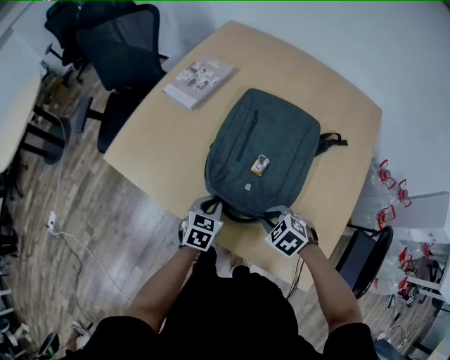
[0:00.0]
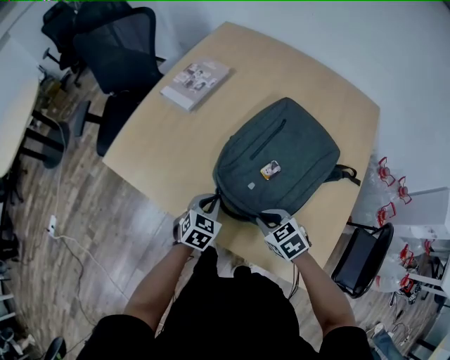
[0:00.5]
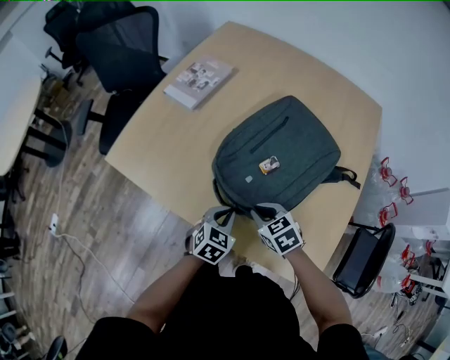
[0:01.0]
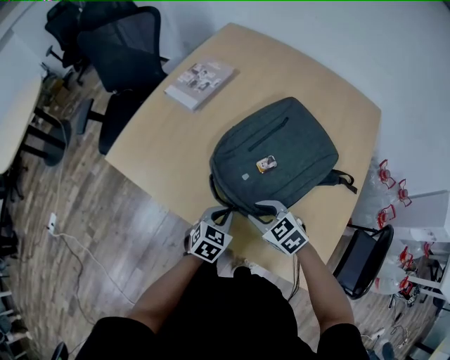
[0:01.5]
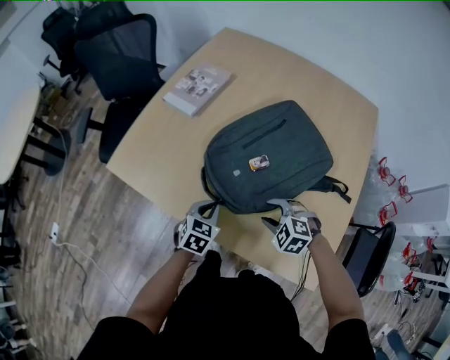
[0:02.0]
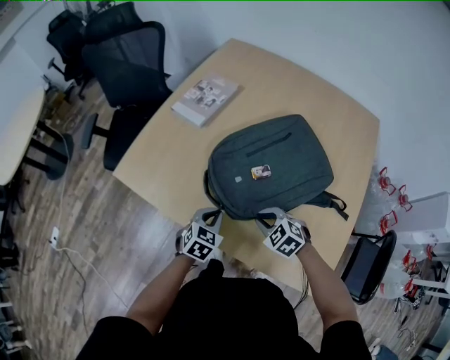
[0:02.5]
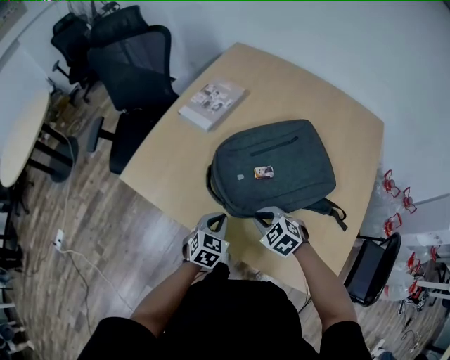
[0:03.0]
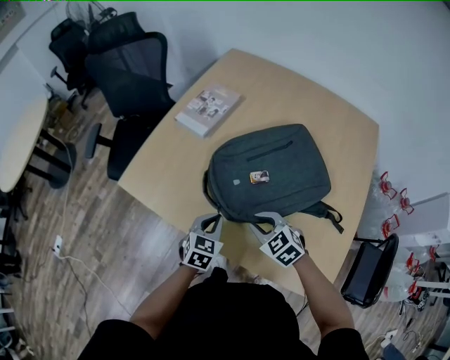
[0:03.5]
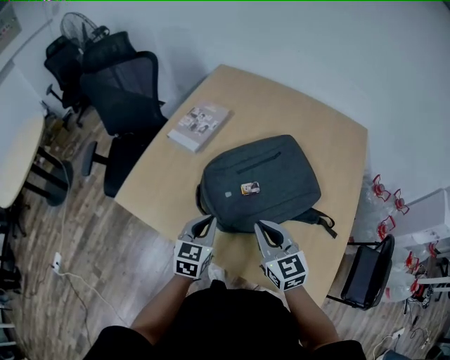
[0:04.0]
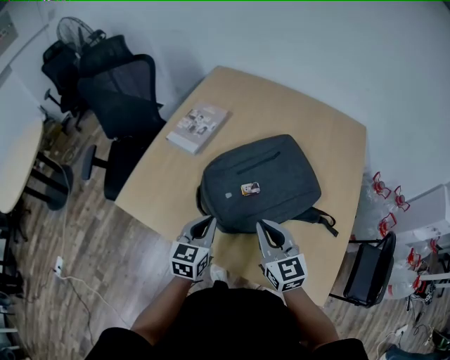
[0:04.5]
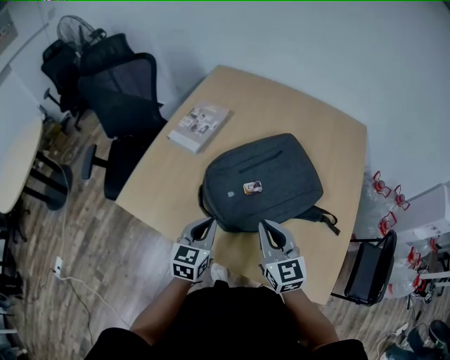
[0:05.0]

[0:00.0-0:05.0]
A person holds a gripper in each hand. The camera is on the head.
0:00.0 to 0:02.5: The right gripper is displaced to the left by approximately 5 cm, and opens, then closes once more.
0:02.5 to 0:05.0: The left gripper travels upward by approximately 10 cm, and changes its angle by some 30 degrees; the right gripper is displaced upward by roughly 15 cm, and tilts its fingers roughly 40 degrees upward.

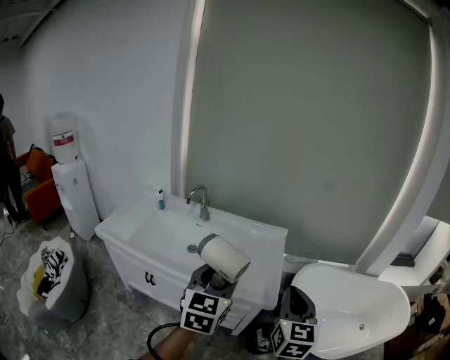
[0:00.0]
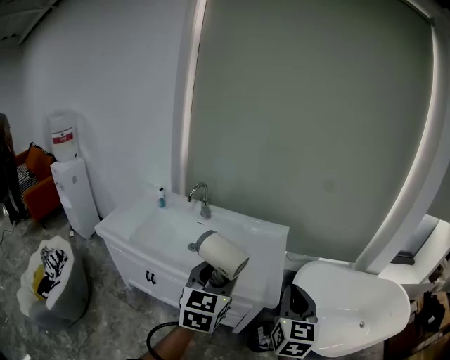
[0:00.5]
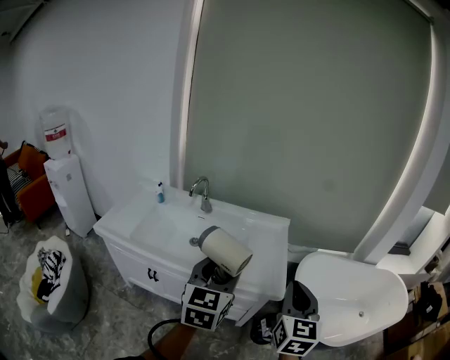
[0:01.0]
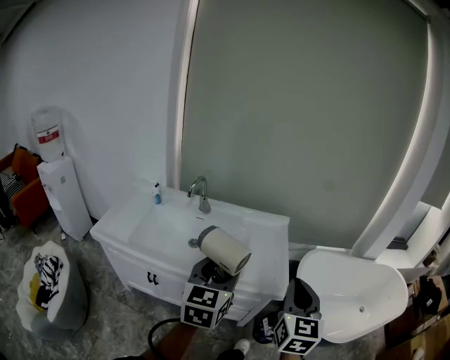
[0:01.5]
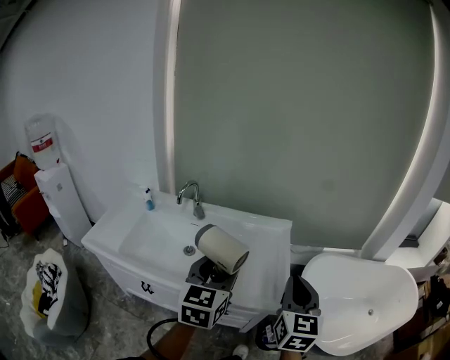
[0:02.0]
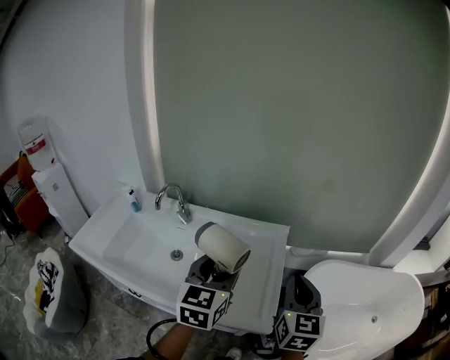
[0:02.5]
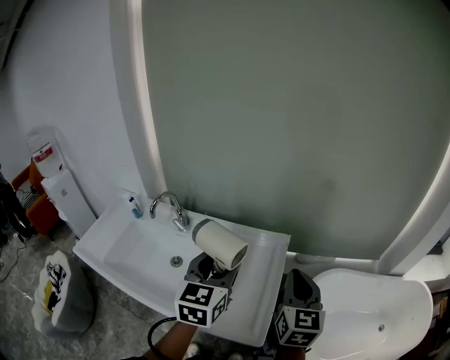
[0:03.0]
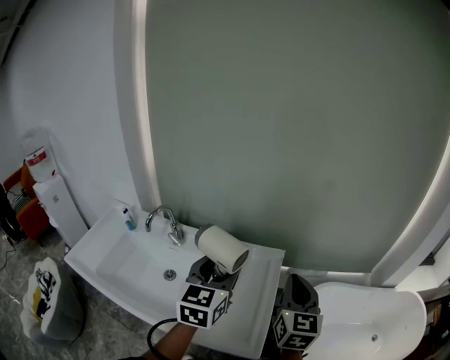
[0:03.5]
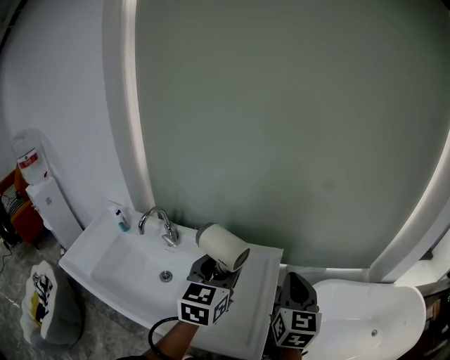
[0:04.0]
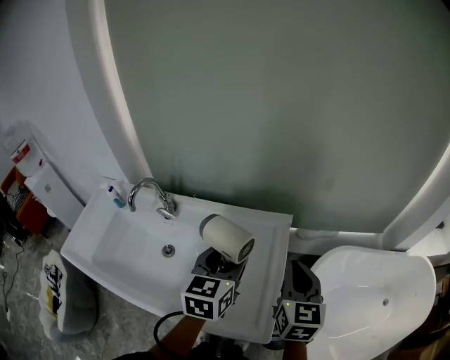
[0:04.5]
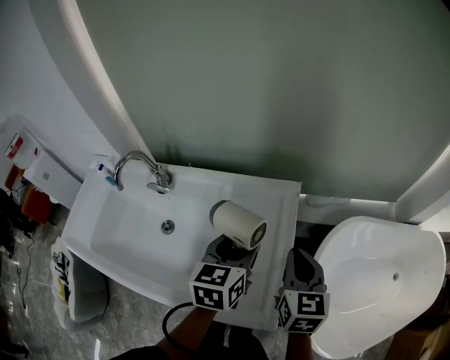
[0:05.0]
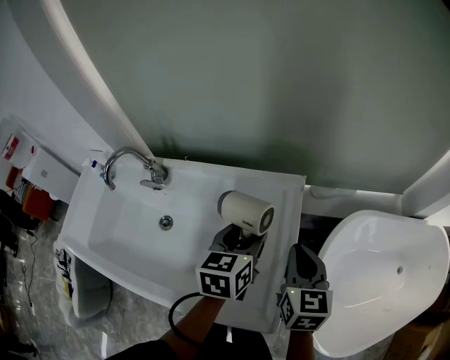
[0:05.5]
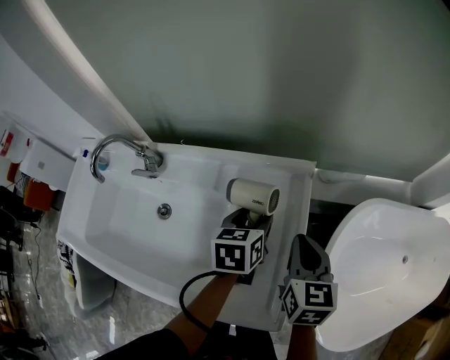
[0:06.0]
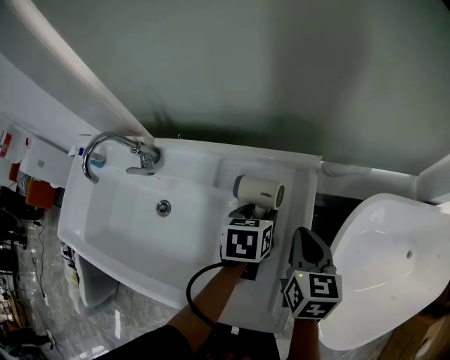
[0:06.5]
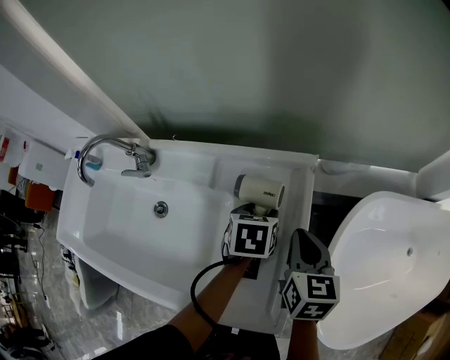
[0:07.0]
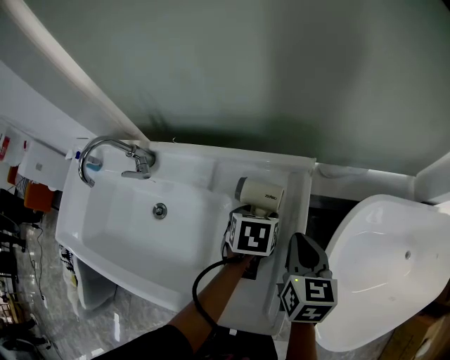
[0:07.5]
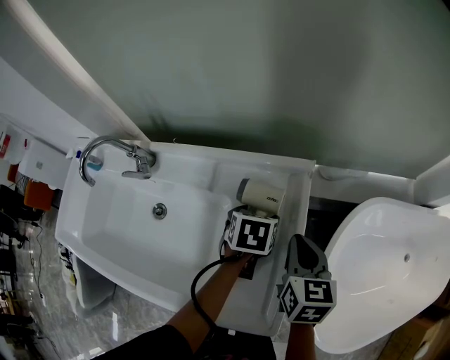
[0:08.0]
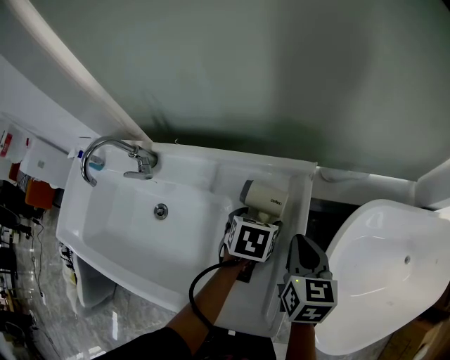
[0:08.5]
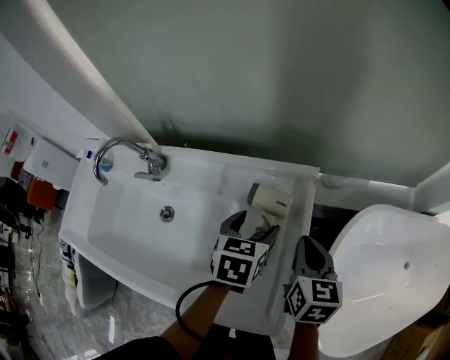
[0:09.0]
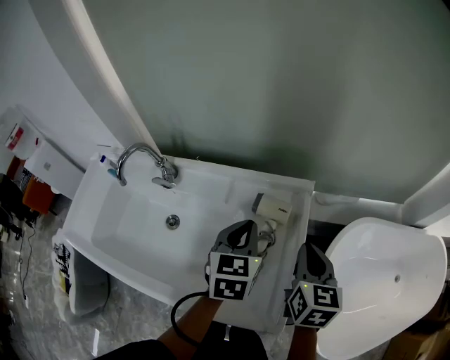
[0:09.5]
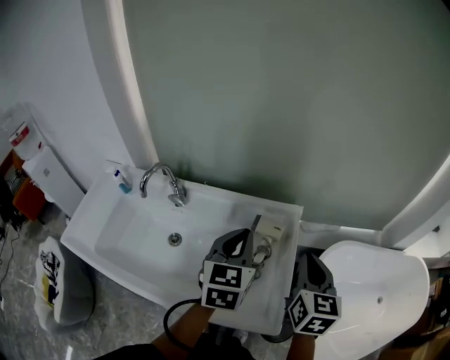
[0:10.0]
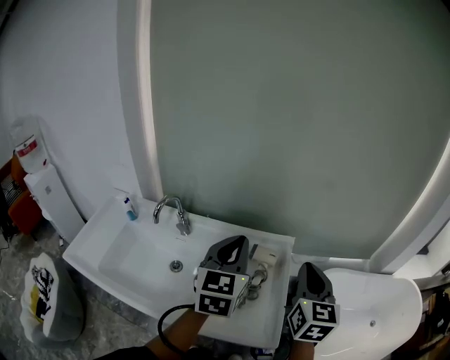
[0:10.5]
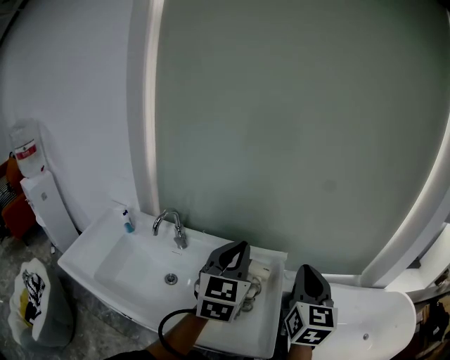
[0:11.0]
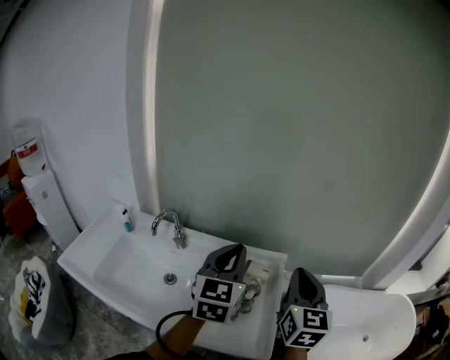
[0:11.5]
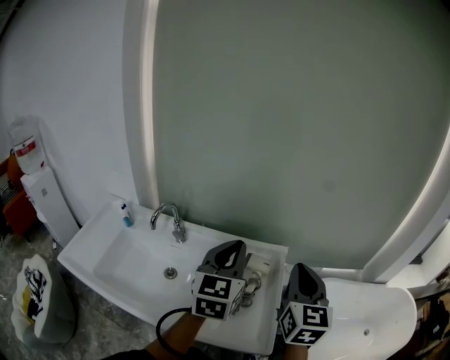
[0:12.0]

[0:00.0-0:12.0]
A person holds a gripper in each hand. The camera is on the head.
0:00.0 to 0:02.0: Both grippers travel together forward, roughly 10 cm.
0:02.0 to 0:04.0: Both grippers move forward, about 25 cm.
0:04.0 to 0:06.0: The grippers both shift downward by roughly 25 cm. The right gripper rotates about 20 degrees. The left gripper tips its fingers downward by roughly 30 degrees.
0:06.0 to 0:08.0: The left gripper moves downward, about 5 cm, and swivels some 20 degrees.
0:08.0 to 0:10.0: The right gripper goes some 20 cm upward and backward. The left gripper is displaced upward by roughly 25 cm, tips its fingers upward by about 40 degrees, and closes its fingers.
0:10.0 to 0:12.0: Both grippers travel together upward, roughly 10 cm.

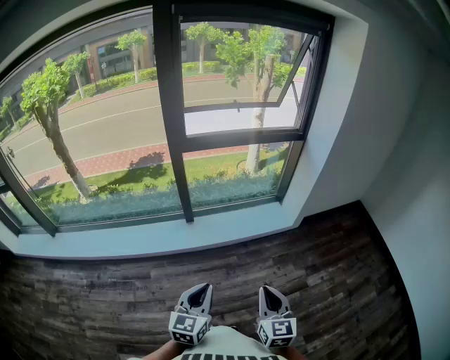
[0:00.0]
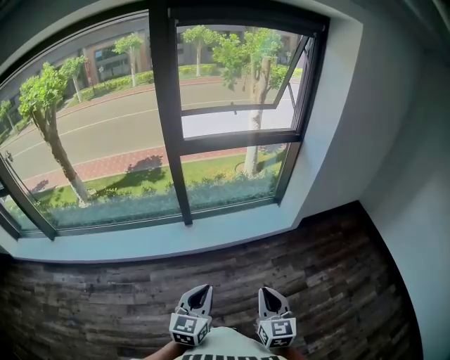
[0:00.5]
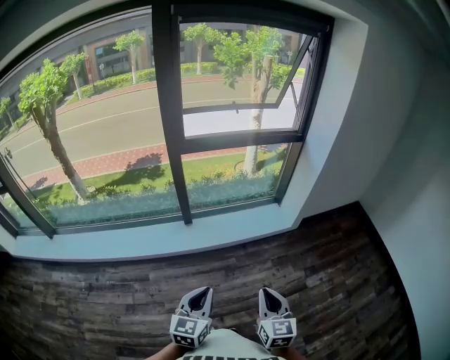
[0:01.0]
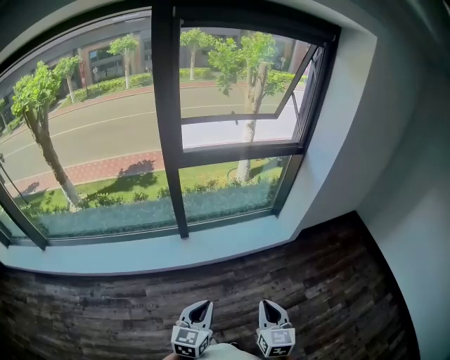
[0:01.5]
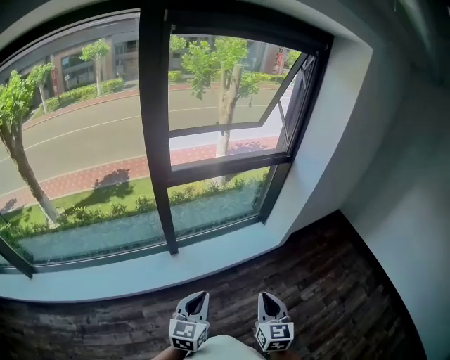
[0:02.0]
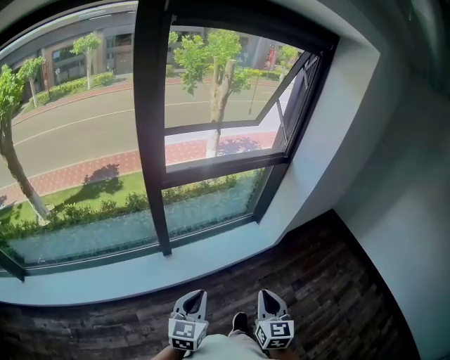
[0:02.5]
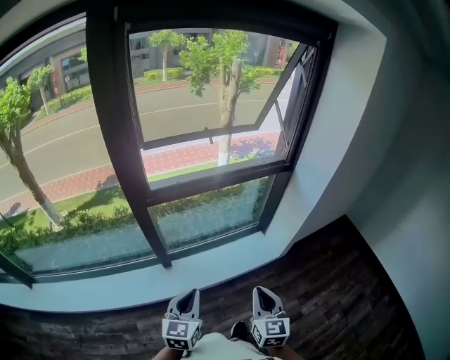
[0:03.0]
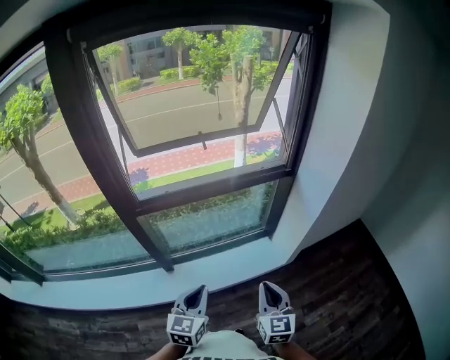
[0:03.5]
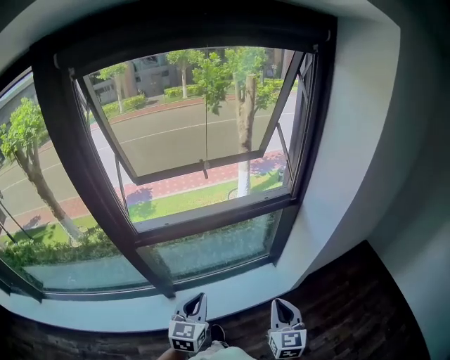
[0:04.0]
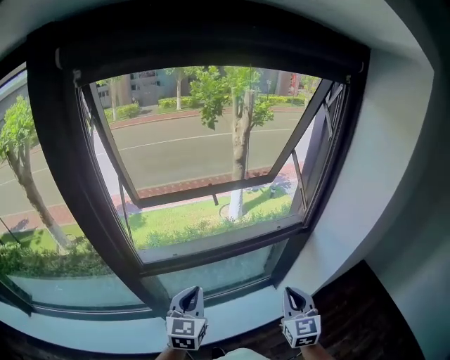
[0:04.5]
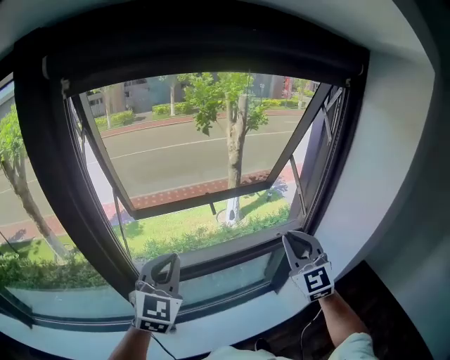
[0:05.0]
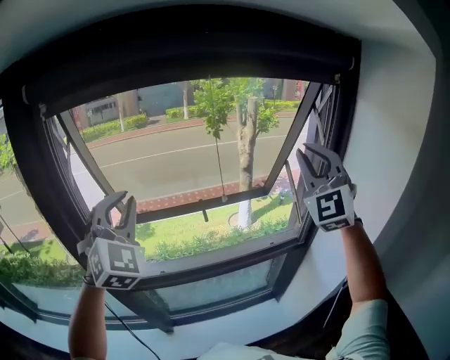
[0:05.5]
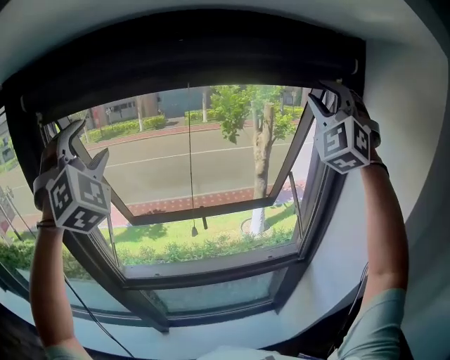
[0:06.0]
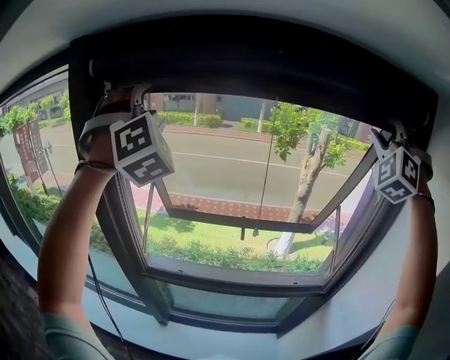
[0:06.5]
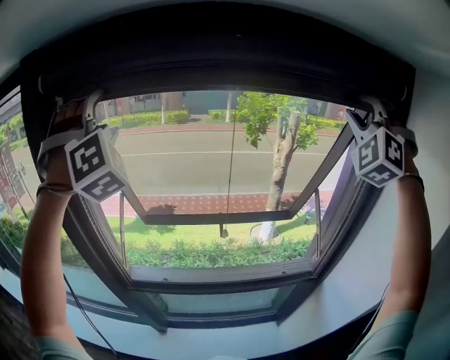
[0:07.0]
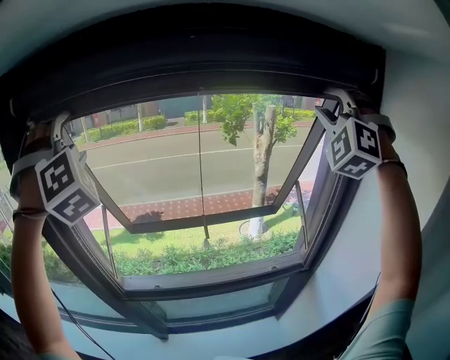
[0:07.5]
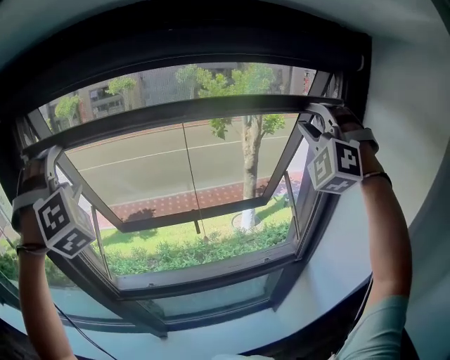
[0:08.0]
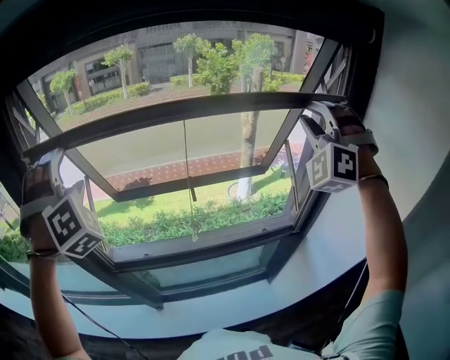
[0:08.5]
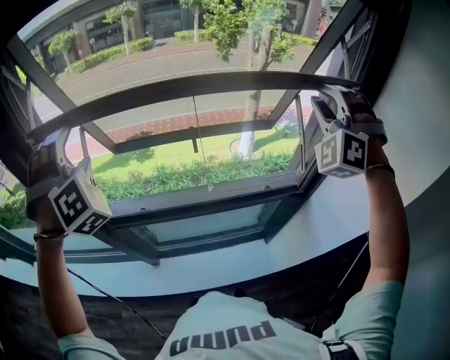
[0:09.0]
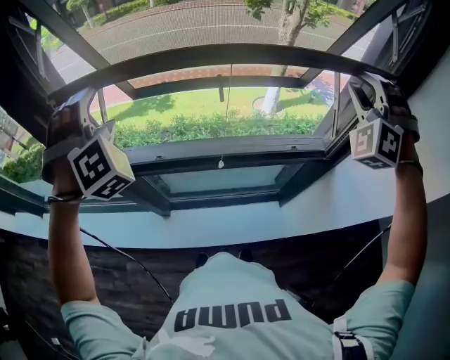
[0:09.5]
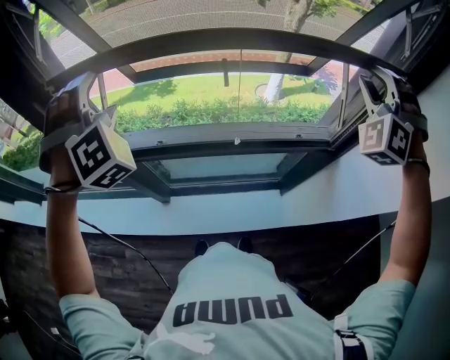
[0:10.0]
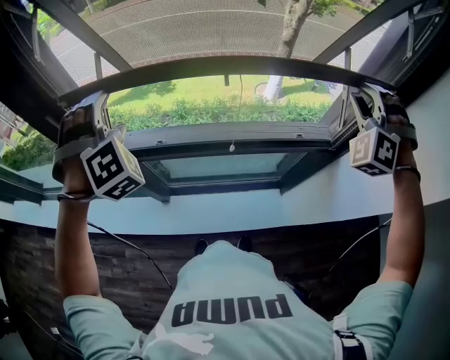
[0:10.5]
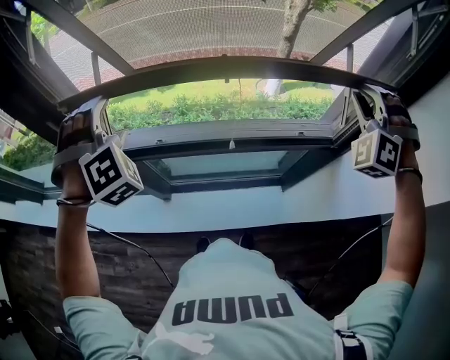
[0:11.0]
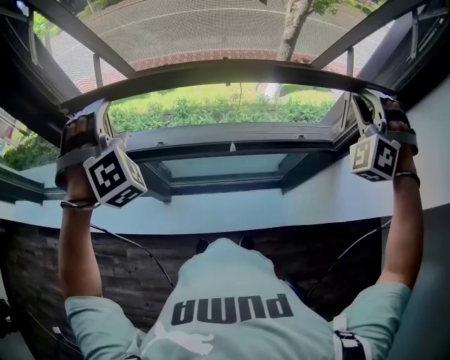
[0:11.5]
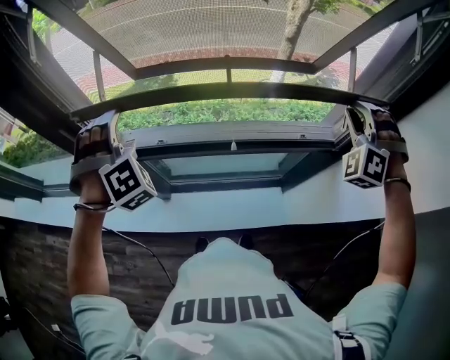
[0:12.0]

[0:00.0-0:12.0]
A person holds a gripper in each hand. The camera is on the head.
0:00.0 to 0:02.0: Both grippers move forward and to the left, about 20 cm.
0:02.0 to 0:04.0: The two grippers travel together, forward, approximately 40 cm.
0:04.0 to 0:06.0: Both grippers move upward and forward, roughly 70 cm. The right gripper rolls counterclockwise, seen from behind, by some 70 degrees, and opens. The left gripper twists roughly 70 degrees clockwise, seen from behind, and opens up.
0:06.0 to 0:08.0: The left gripper shifts about 5 cm downward and forward, and rotates roughly 20 degrees. Meanwhile the right gripper heads downward, covering roughly 10 cm, and changes its angle by approximately 20 degrees.
0:08.0 to 0:10.0: The two grippers go about 20 cm downward.
0:10.0 to 0:12.0: The grippers both shift downward by about 10 cm.
